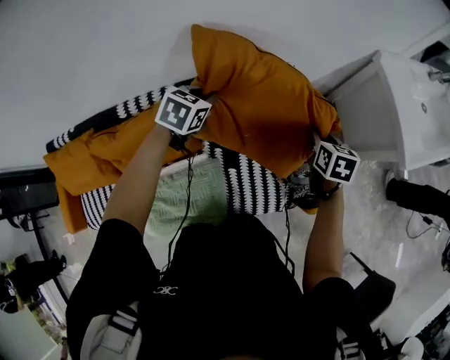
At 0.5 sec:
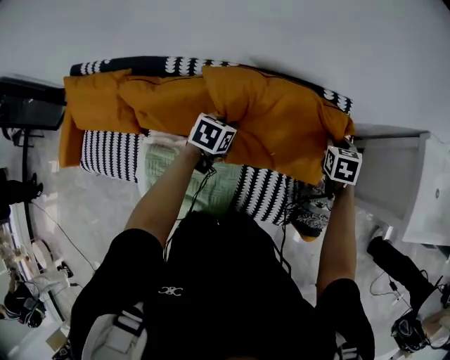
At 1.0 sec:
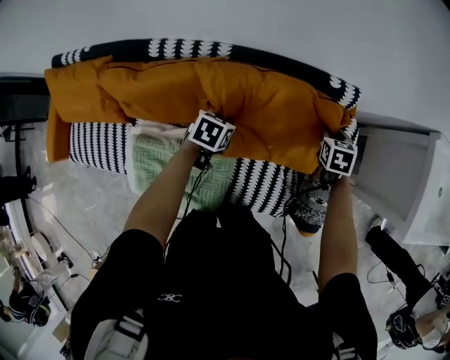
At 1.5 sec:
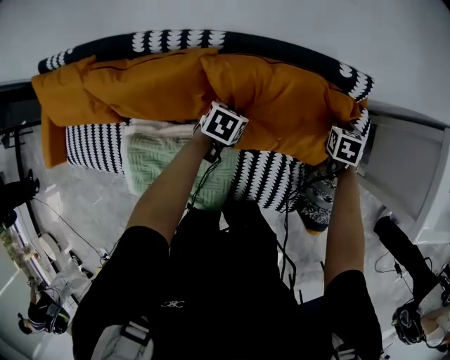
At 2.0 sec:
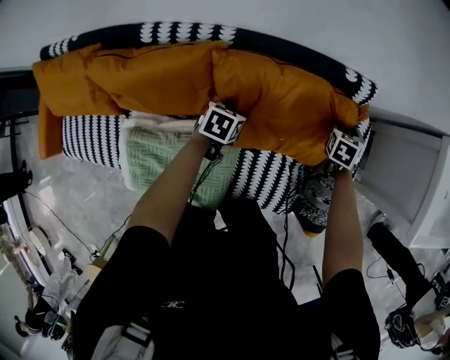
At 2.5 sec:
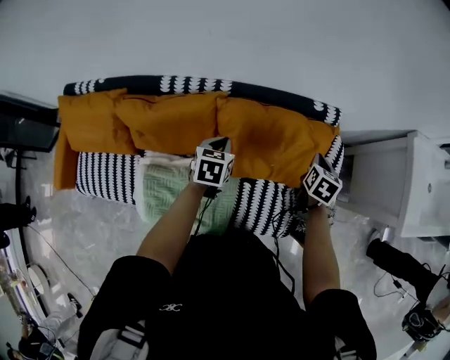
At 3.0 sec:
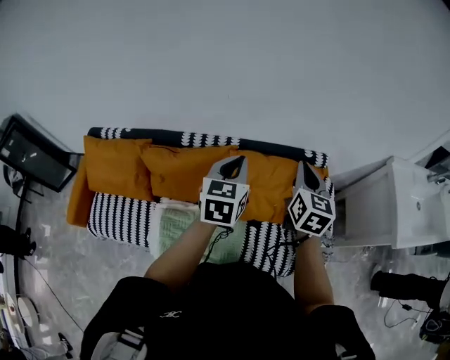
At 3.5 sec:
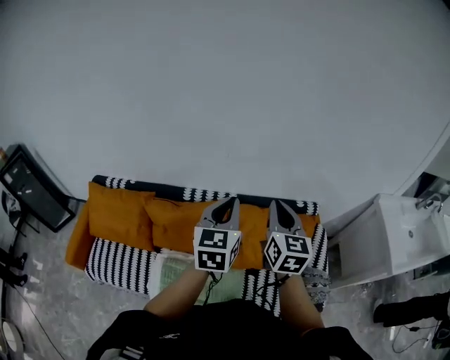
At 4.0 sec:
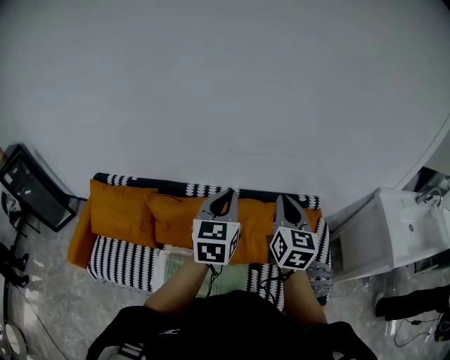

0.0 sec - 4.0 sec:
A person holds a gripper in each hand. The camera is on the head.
0.0 sec - 2.0 sec: The right gripper shifts roughly 30 cm downward, to the left and forward, rotates some 30 degrees, and opens up. The left gripper is displaced downward by some 30 cm, changes its angle by about 30 degrees, and opens its fingers.
2.0 sec - 4.0 sec: The grippers both shift upward by roughly 50 cm. The left gripper tilts its fingers some 50 degrees upward, and closes its fingers, while the right gripper angles its fingers upward, by about 50 degrees, and closes.

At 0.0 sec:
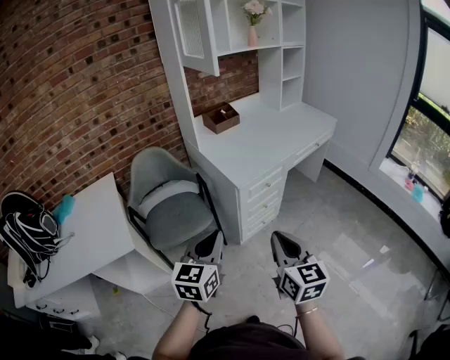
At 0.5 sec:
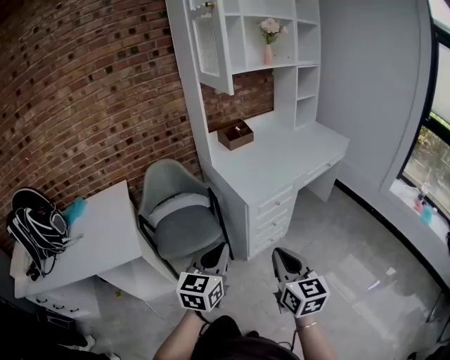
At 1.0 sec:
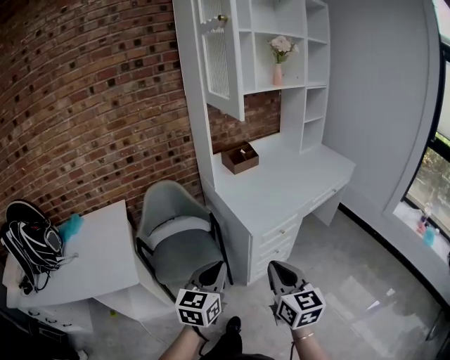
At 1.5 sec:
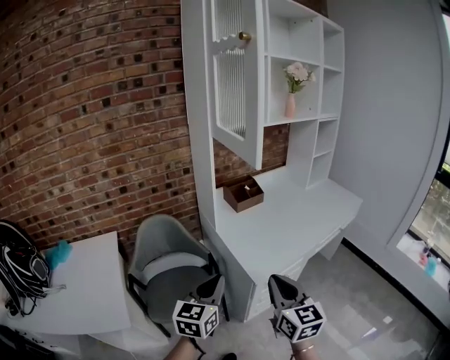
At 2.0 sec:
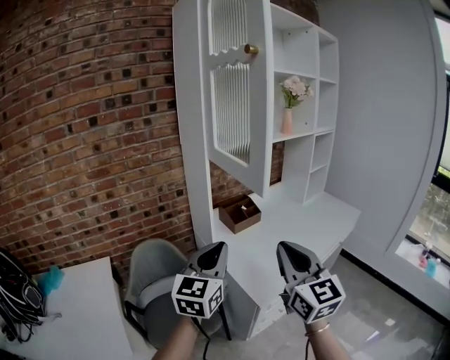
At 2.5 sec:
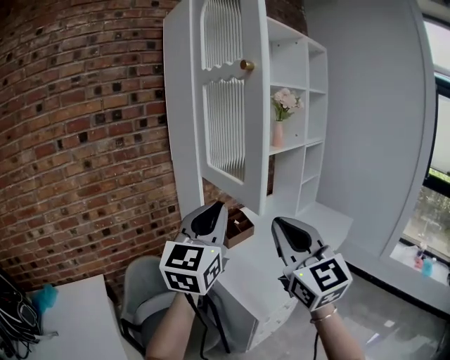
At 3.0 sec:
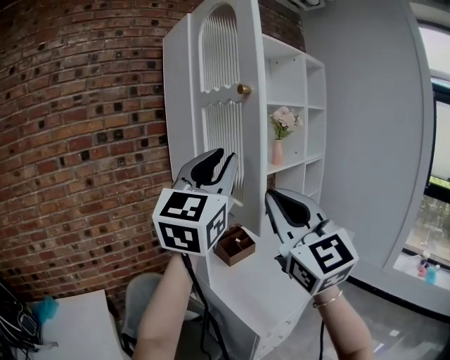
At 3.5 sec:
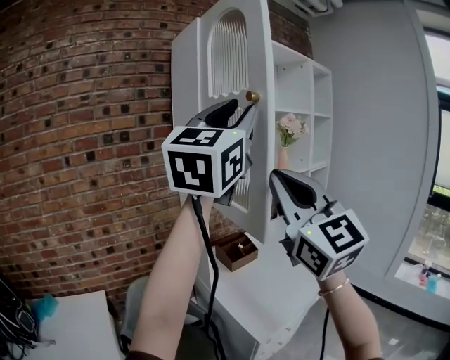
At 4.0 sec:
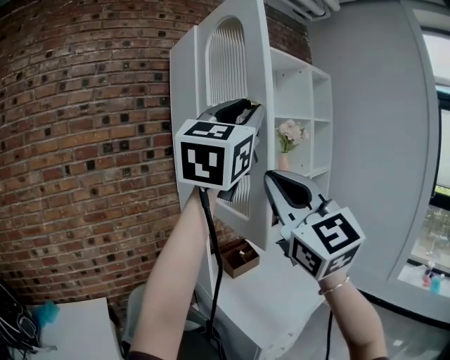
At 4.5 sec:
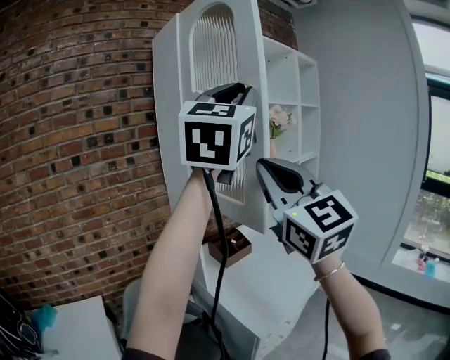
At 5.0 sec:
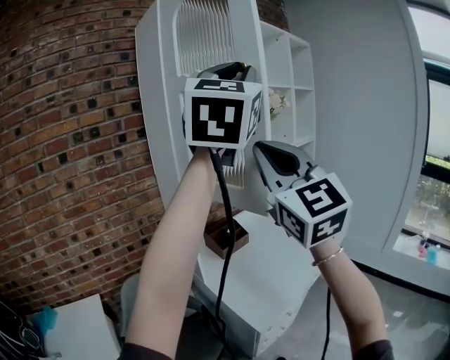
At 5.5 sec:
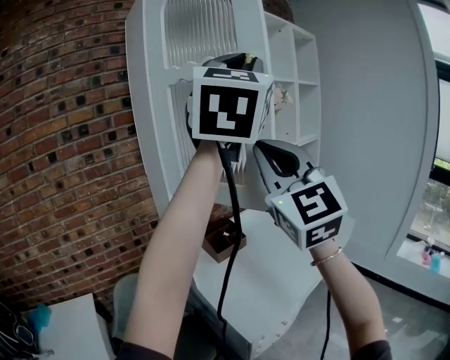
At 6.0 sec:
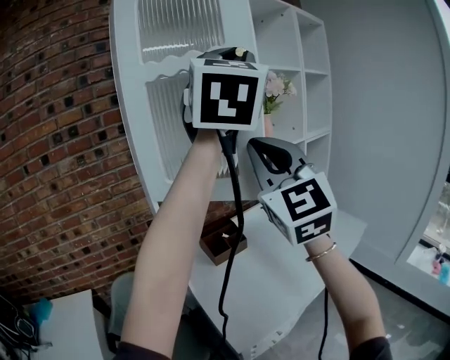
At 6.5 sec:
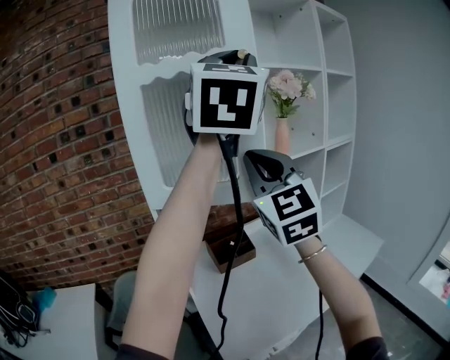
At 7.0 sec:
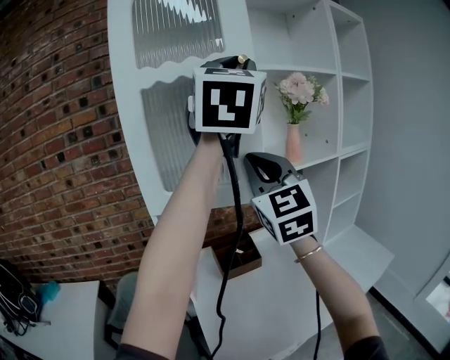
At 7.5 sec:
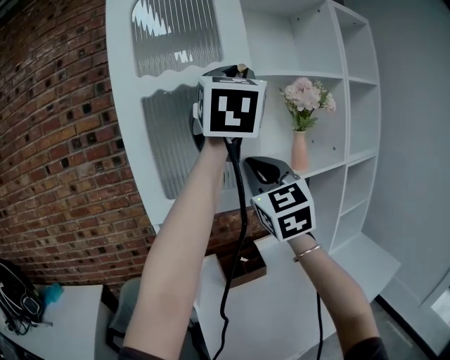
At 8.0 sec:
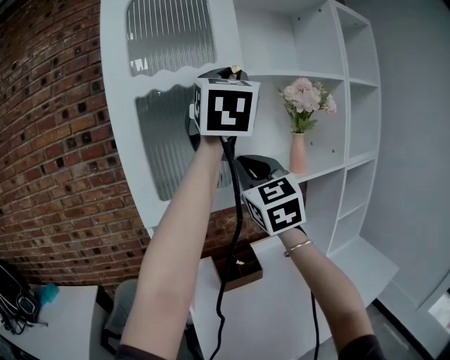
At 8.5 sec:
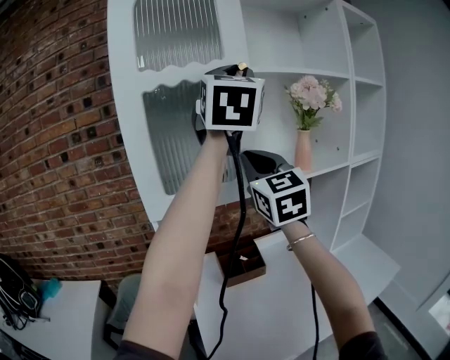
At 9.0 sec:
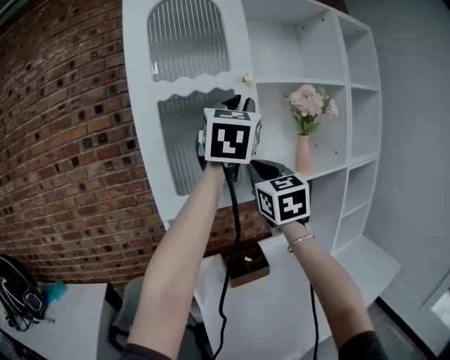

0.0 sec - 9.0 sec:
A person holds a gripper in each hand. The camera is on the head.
0.0 sec - 2.0 sec: The grippers both shift forward and upward by about 40 cm. The right gripper changes its angle by some 20 degrees.
2.0 sec - 4.5 sec: The right gripper is displaced upward by some 25 cm, and swivels roughly 20 degrees, while the left gripper heads upward, covering some 40 cm, and swivels about 30 degrees.
4.5 sec - 7.0 sec: The left gripper shifts roughly 30 cm forward and to the right, and changes its angle by some 30 degrees, while the right gripper goes about 35 cm forward.
7.0 sec - 9.0 sec: The left gripper ends up roughly 5 cm from where it was. The right gripper heads forward, covering roughly 5 cm.

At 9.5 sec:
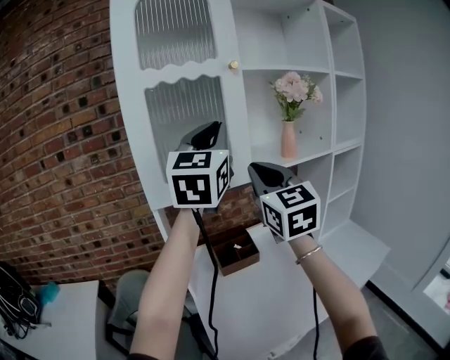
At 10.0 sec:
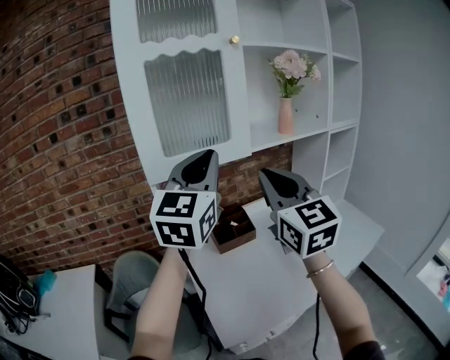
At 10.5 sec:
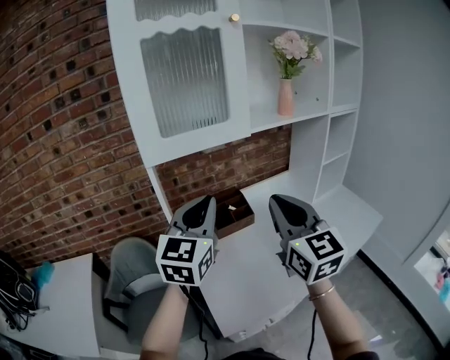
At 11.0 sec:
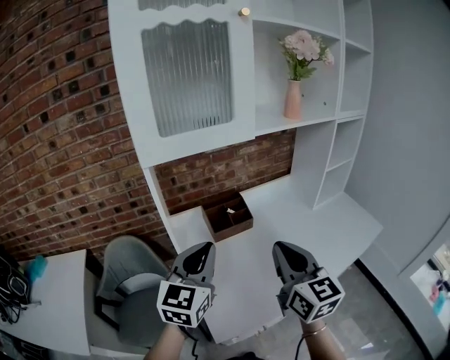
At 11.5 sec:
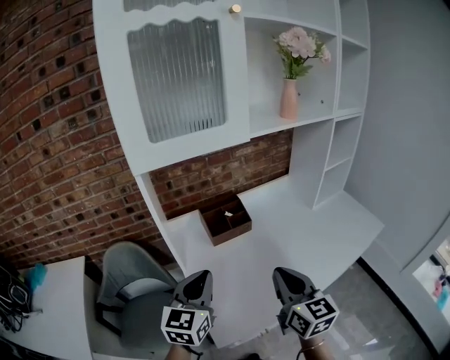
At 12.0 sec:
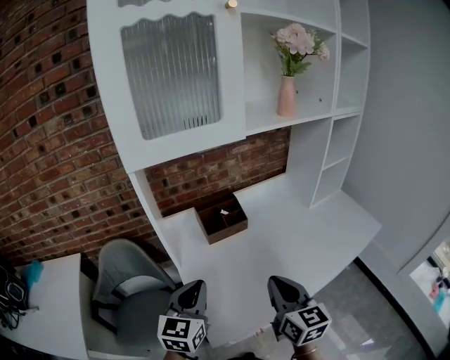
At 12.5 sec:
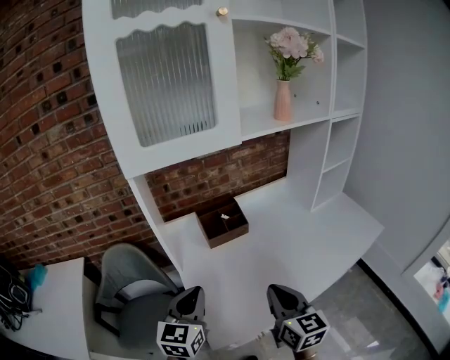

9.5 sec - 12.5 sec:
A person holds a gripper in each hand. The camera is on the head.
9.5 sec - 11.0 sec: The left gripper moves downward, about 35 cm, and rotates roughly 30 degrees; the right gripper moves downward and backward, about 25 cm, and rotates approximately 20 degrees.
11.0 sec - 12.5 sec: Both grippers move downward, some 10 cm.

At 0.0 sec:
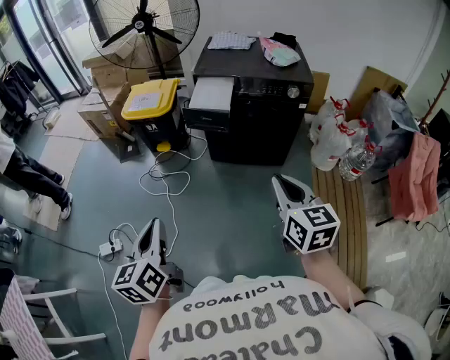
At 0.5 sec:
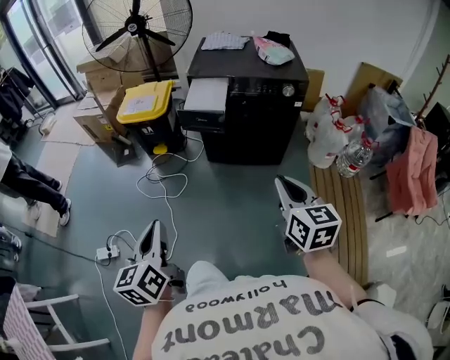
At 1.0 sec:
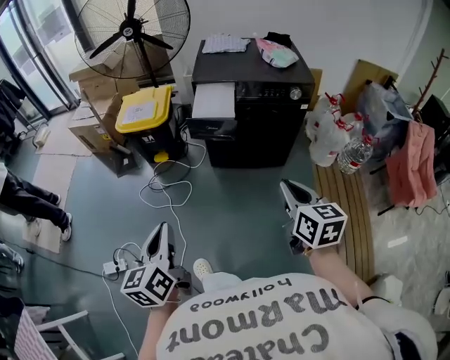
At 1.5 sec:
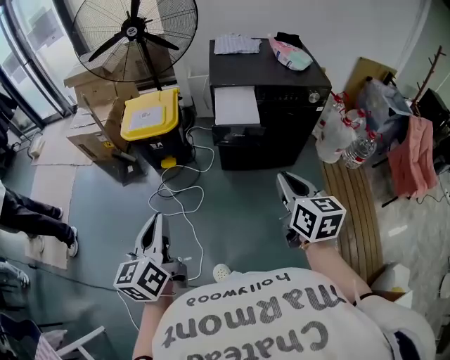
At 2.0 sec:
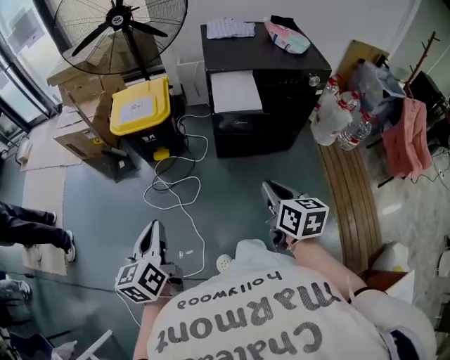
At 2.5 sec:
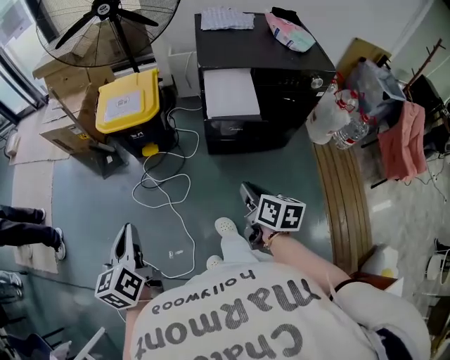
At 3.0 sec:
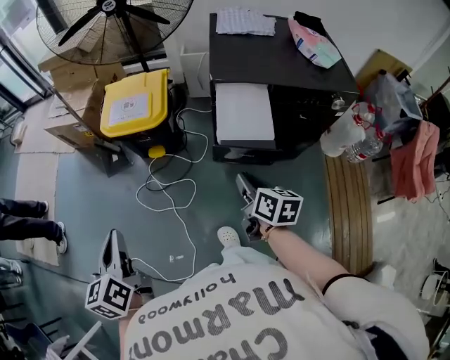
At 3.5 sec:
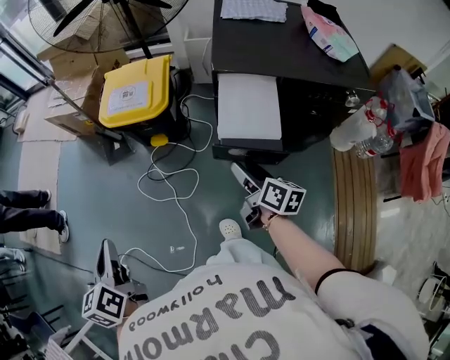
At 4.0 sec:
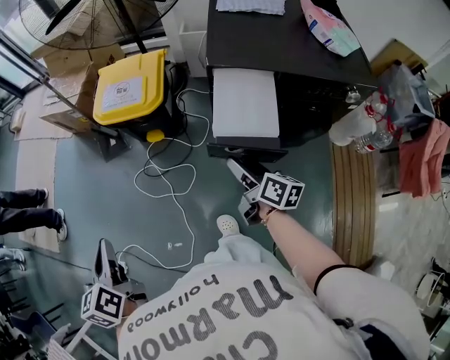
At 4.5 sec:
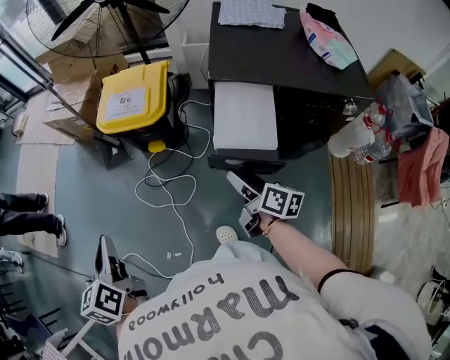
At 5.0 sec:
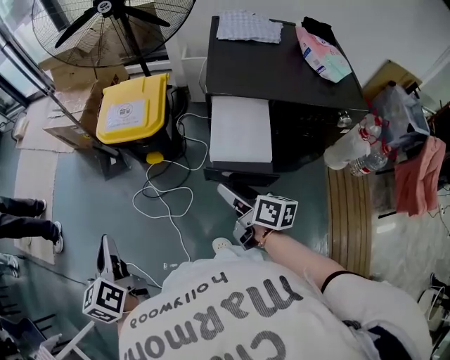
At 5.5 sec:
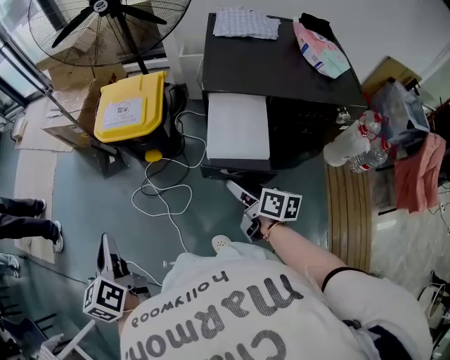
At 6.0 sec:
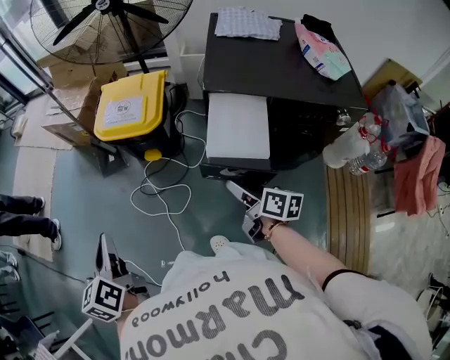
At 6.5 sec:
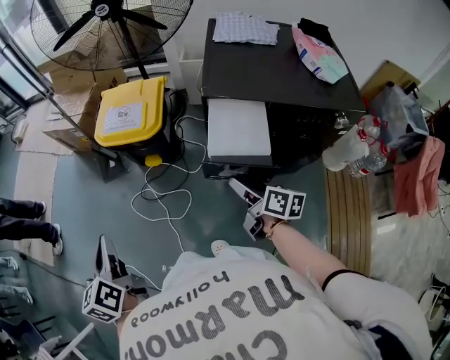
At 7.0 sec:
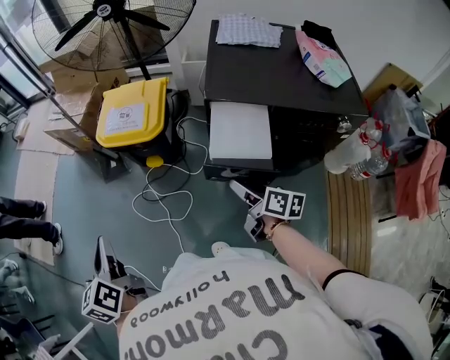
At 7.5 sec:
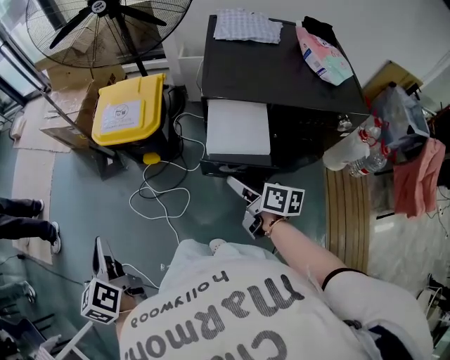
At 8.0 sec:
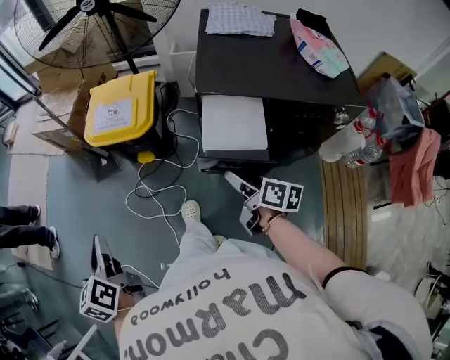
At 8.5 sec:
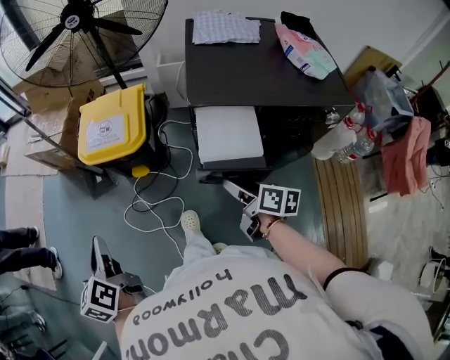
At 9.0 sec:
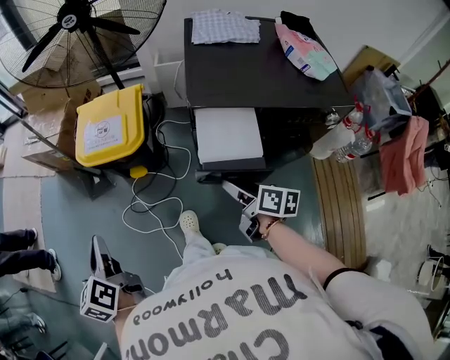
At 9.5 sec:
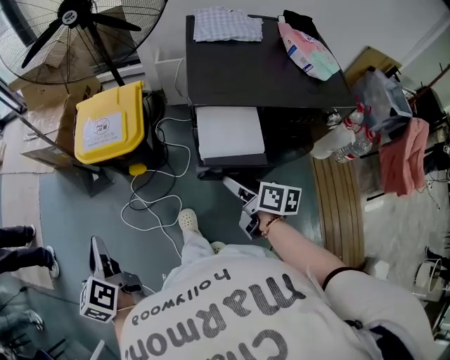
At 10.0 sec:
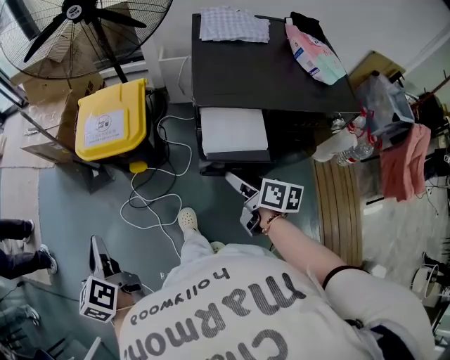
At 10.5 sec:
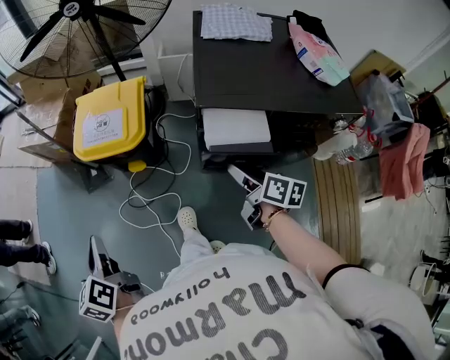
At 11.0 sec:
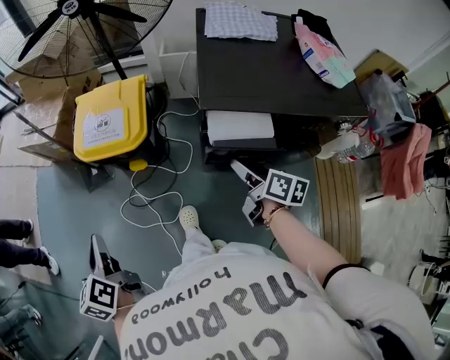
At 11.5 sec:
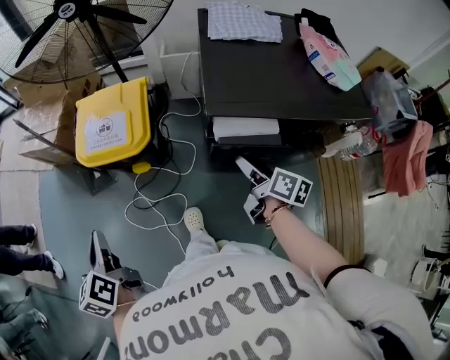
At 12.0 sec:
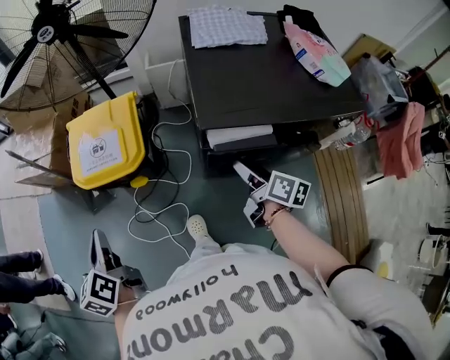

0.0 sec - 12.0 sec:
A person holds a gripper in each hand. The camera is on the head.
0.0 sec - 2.0 sec: The left gripper travels to the left and forward by roughly 30 cm; the right gripper shifts roughly 25 cm to the left, forward and downward, and swivels approximately 30 degrees.
2.0 sec - 4.0 sec: The right gripper heads forward and downward, covering roughly 30 cm, turns by approximately 30 degrees, and opens up. The left gripper heads forward, covering about 15 cm, and changes its angle by roughly 20 degrees.
4.0 sec - 6.0 sec: The grippers stay close to where they were, moving slightly.
6.0 sec - 8.0 sec: The grippers move only a little.
8.0 sec - 10.0 sec: The left gripper heads forward, covering some 5 cm.
10.0 sec - 12.0 sec: The left gripper moves forward, roughly 15 cm. The right gripper travels forward by approximately 10 cm.
